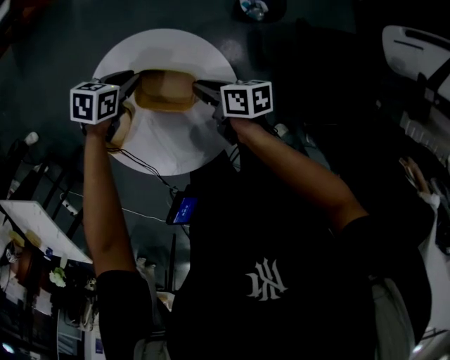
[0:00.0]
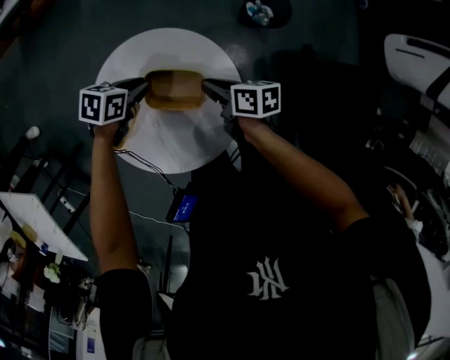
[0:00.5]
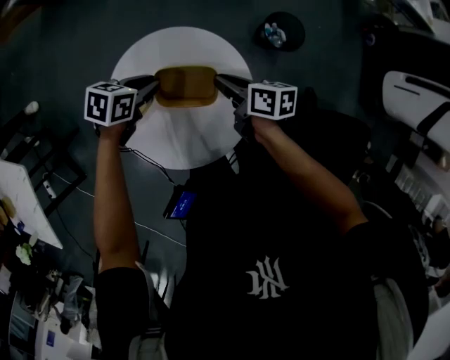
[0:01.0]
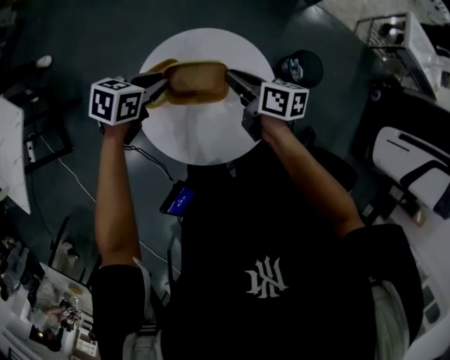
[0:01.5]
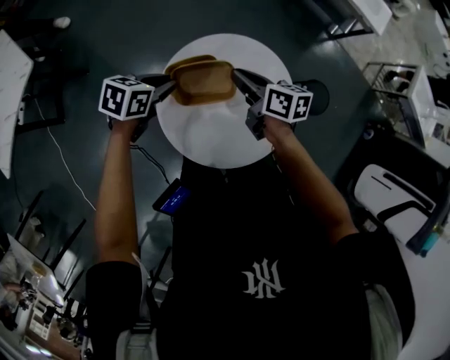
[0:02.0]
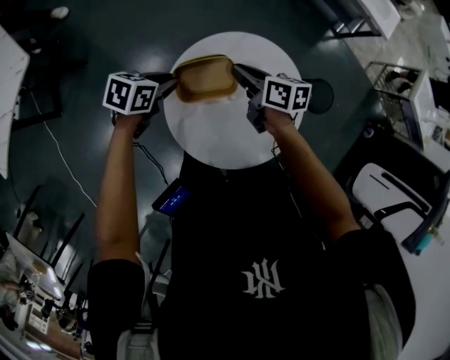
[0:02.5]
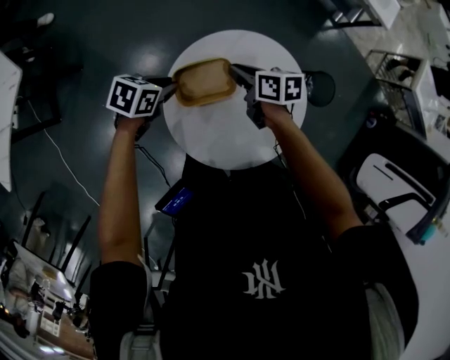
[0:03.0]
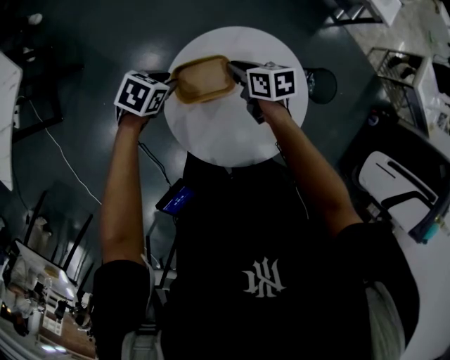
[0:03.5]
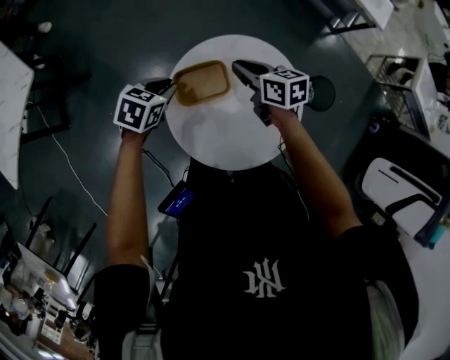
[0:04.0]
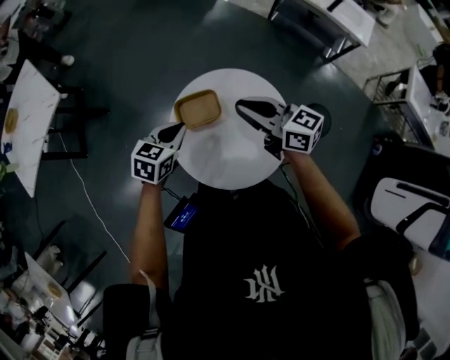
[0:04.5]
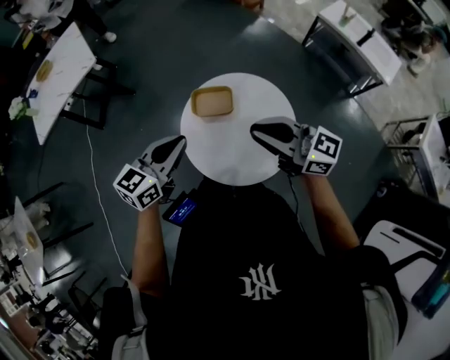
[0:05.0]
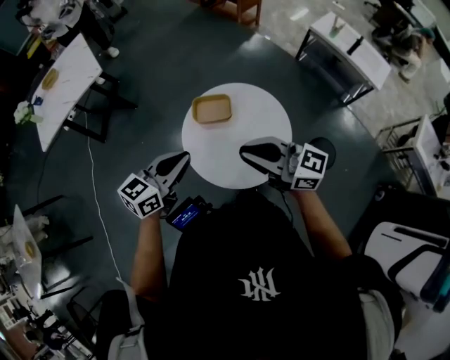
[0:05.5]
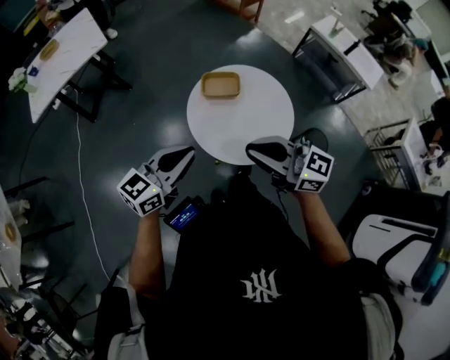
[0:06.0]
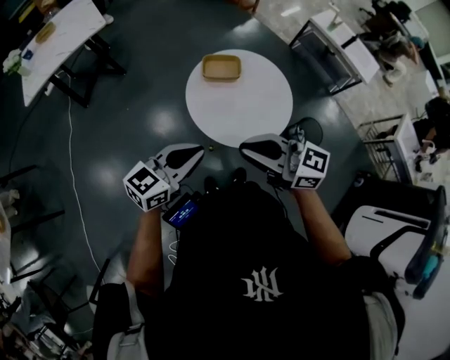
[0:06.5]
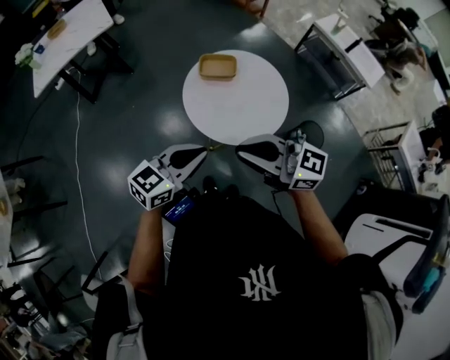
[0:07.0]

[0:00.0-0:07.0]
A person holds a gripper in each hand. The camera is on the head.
0.0 to 2.0 s: The left gripper ends up roughly 20 cm from where it was, and rotates approximately 40 degrees. Meanwhile the right gripper ends up about 20 cm from where it was, and rotates roughly 40 degrees.
2.0 to 3.5 s: Both grippers move downward, approximately 10 cm. The right gripper changes its angle by some 20 degrees.
3.5 to 5.0 s: The two grippers go roughly 30 cm upward. The left gripper tips its fingers upward by about 40 degrees, and closes up. Meanwhile the right gripper tips its fingers upward by roughly 50 degrees.
5.0 to 7.0 s: The right gripper shifts by approximately 25 cm, while the left gripper changes place by about 25 cm.

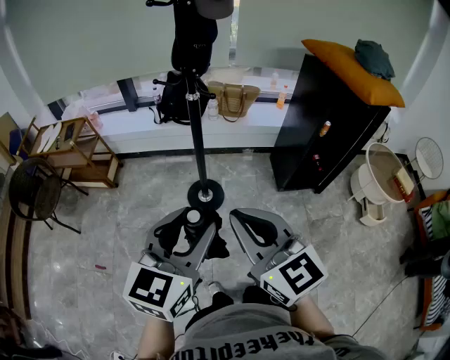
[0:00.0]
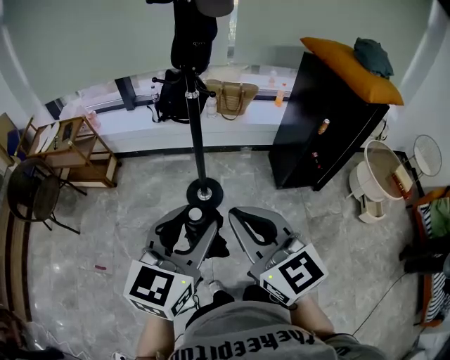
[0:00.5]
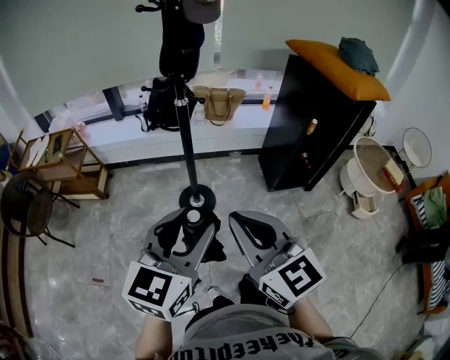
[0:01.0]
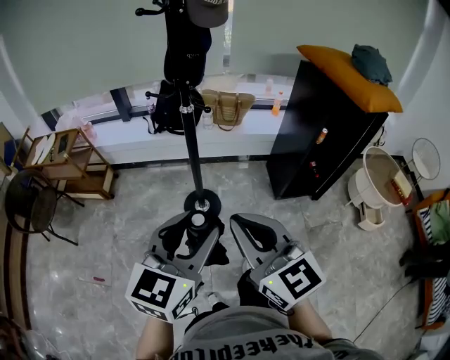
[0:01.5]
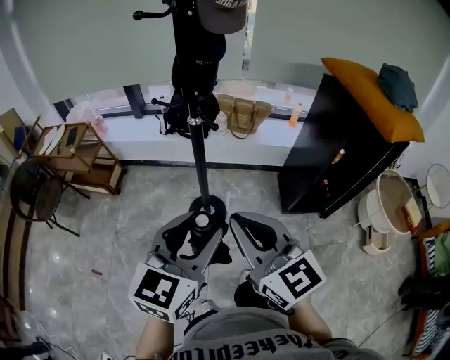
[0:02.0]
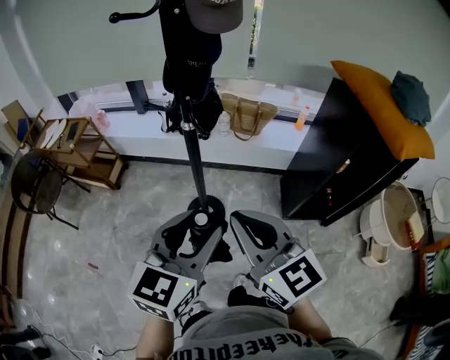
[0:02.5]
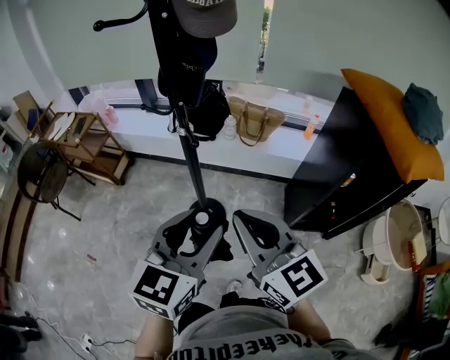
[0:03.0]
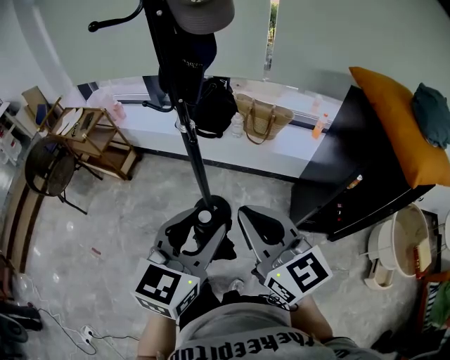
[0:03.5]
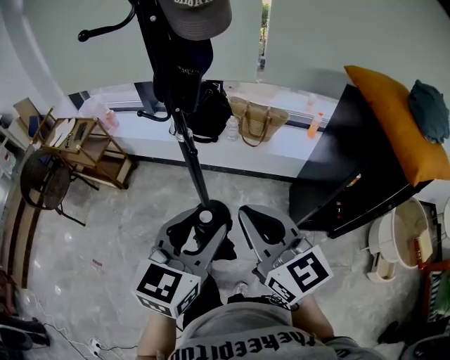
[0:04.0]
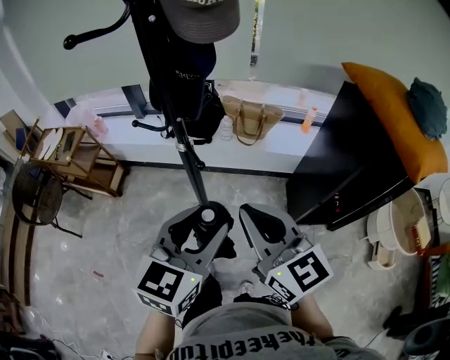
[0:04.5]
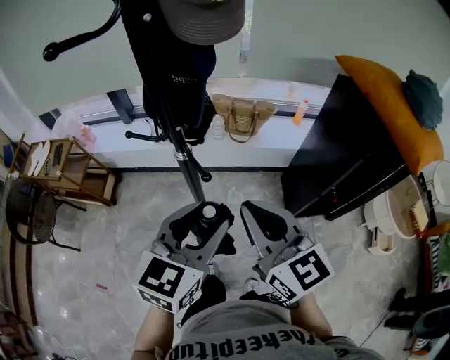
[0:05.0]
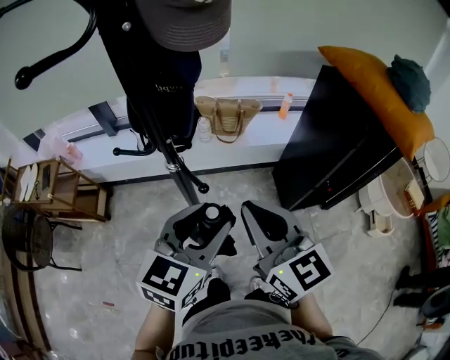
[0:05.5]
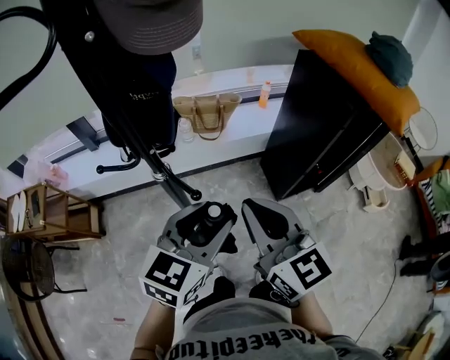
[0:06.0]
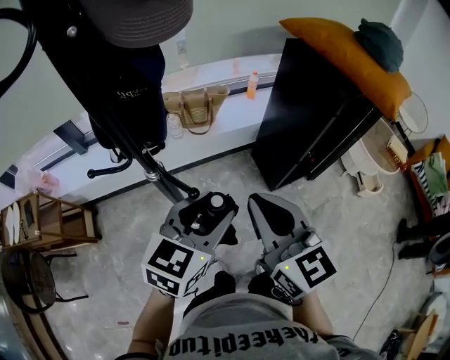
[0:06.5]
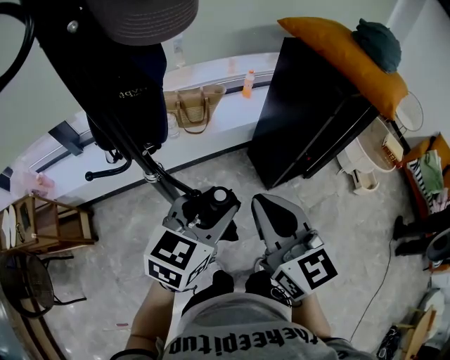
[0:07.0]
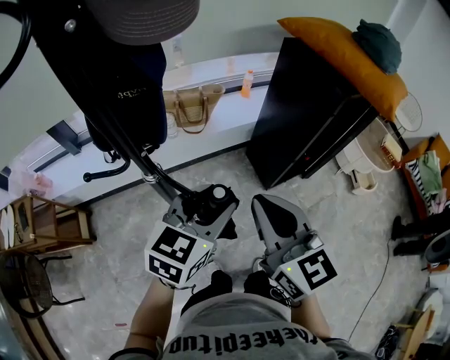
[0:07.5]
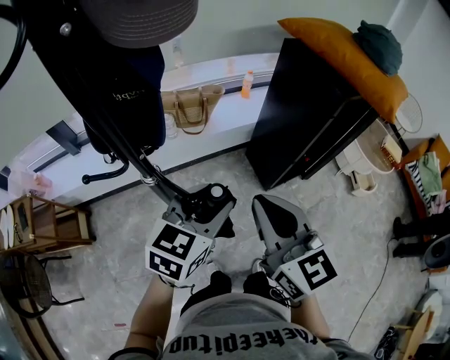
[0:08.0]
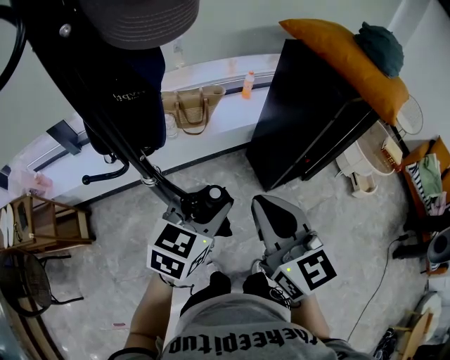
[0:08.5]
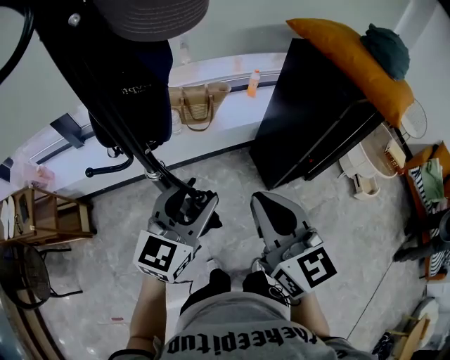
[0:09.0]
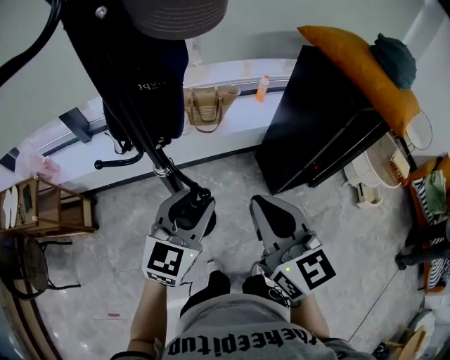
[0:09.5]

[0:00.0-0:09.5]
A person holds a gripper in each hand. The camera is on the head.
0.0 to 2.0 s: Both grippers move forward, some 10 cm.
2.0 to 4.0 s: The two grippers go roughly 15 cm forward and to the right.
4.0 to 5.5 s: The left gripper is displaced forward by roughly 10 cm, and rotates roughly 20 degrees. Meanwhile the right gripper moves forward and to the left, approximately 10 cm.
5.5 to 7.5 s: The left gripper heads forward, covering approximately 5 cm.
7.5 to 9.5 s: The left gripper shifts roughly 5 cm to the left.

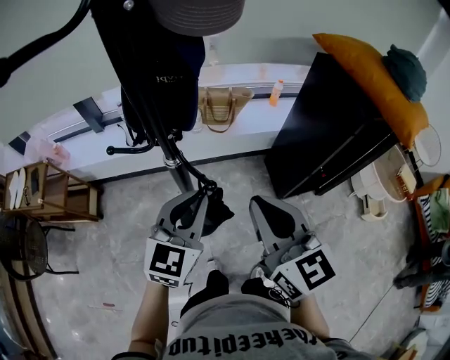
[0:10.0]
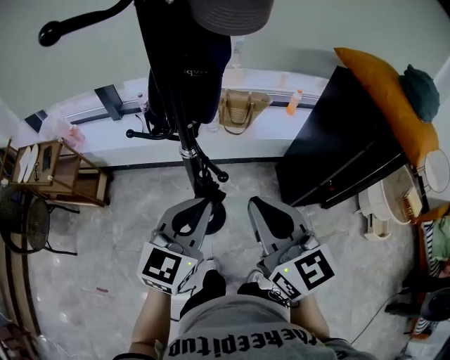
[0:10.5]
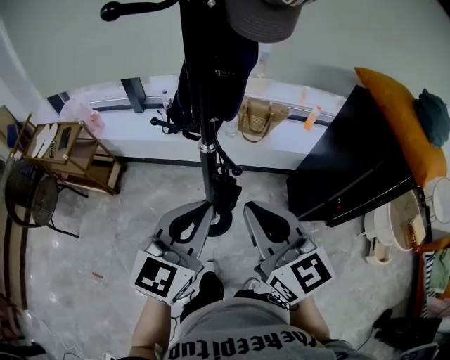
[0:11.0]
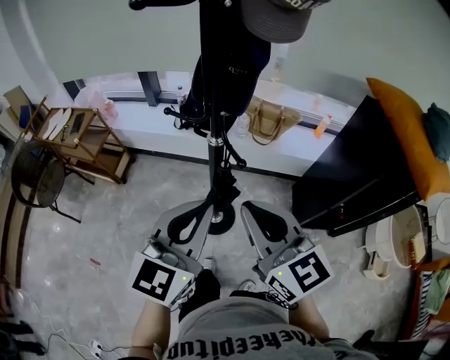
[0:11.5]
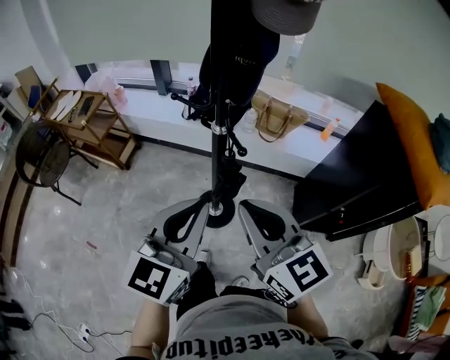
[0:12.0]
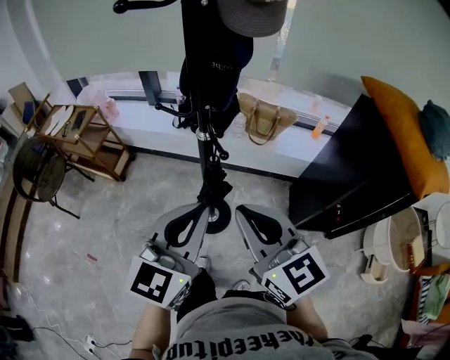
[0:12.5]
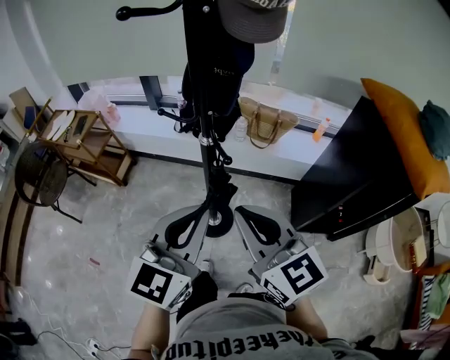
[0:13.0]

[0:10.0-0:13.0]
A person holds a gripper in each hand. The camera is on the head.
10.0 to 11.5 s: The right gripper heads to the left and backward, covering about 10 cm, and changes its angle by some 30 degrees; the left gripper is displaced backward and upward by about 15 cm.
11.5 to 13.0 s: There are only small adjustments of the grippers.

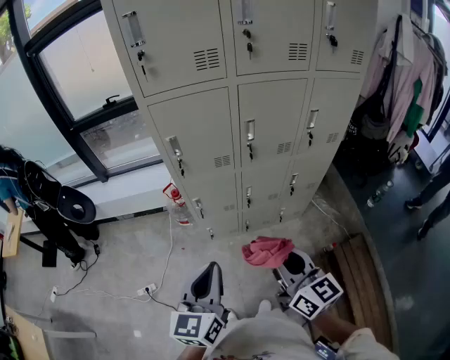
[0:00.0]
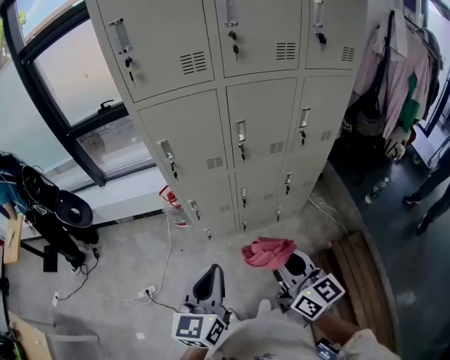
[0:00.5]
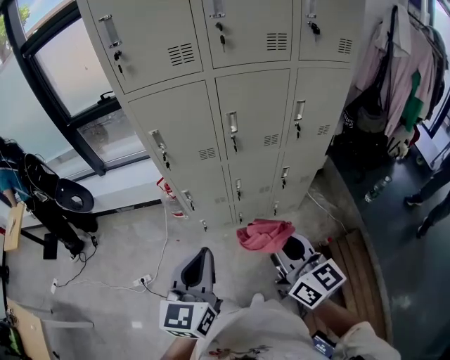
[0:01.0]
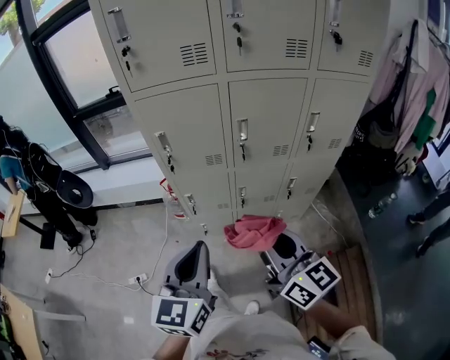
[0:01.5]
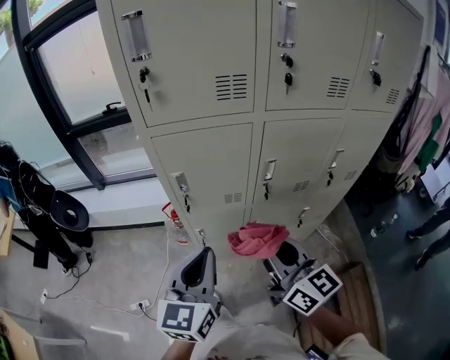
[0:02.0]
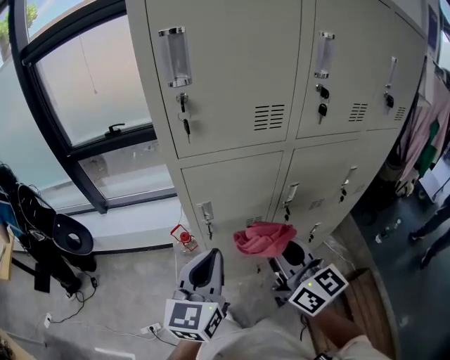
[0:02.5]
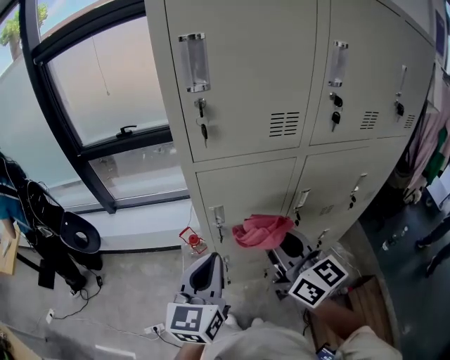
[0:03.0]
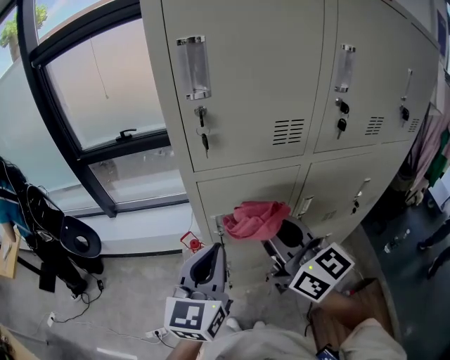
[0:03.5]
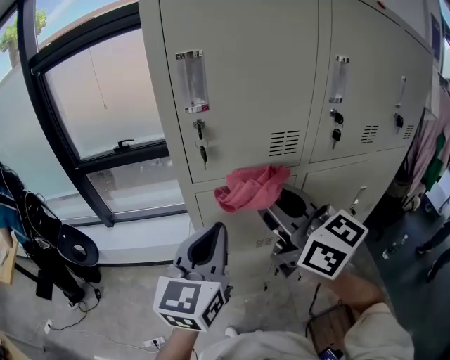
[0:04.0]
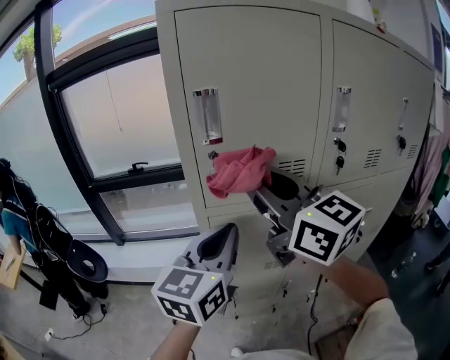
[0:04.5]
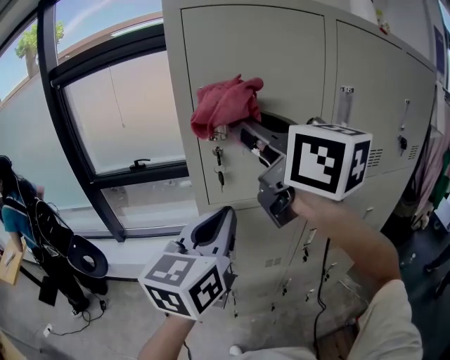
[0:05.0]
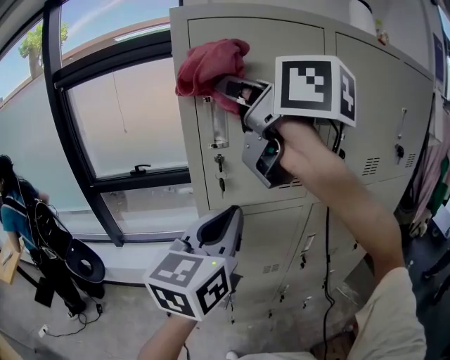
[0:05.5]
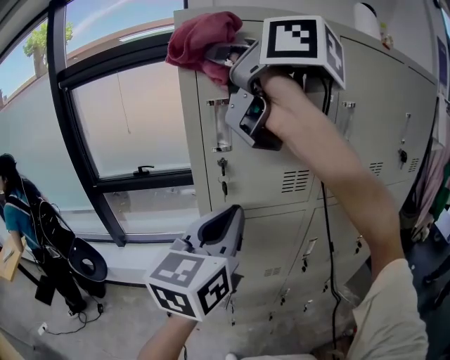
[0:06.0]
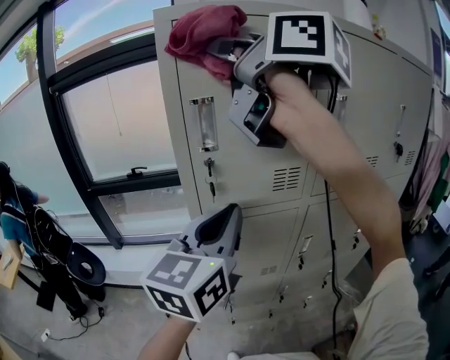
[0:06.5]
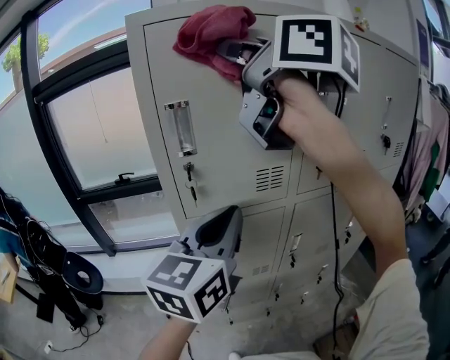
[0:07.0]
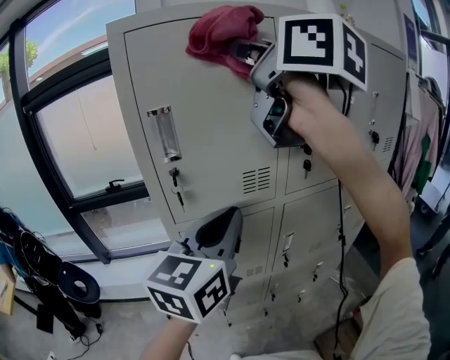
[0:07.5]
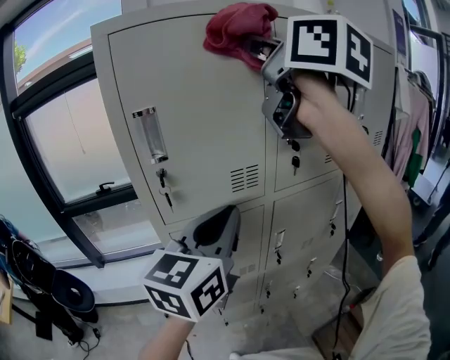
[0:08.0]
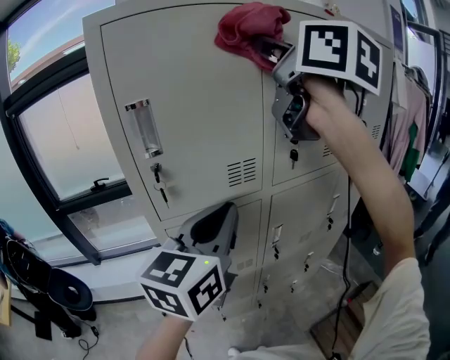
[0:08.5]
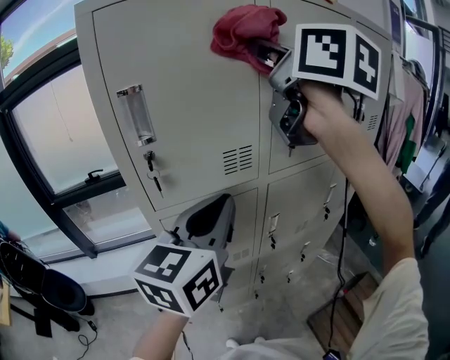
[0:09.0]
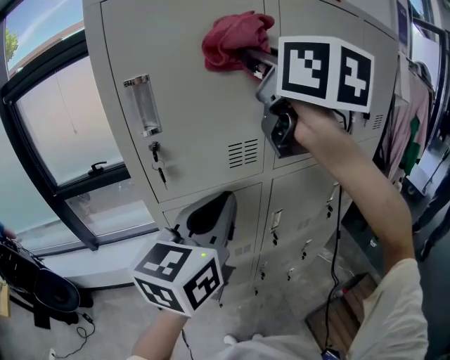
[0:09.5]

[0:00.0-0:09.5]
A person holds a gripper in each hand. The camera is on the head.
0.0 to 2.0 s: Both grippers move forward, roughly 20 cm.
2.0 to 4.0 s: The right gripper goes about 25 cm upward, forward and to the left; the left gripper moves forward, upward and to the left, approximately 20 cm.
4.0 to 5.5 s: The right gripper is displaced upward by approximately 25 cm; the left gripper moves upward, about 10 cm.
5.5 to 7.5 s: The right gripper goes about 15 cm to the right and upward, while the left gripper heads to the right, covering roughly 10 cm.
7.5 to 9.5 s: The right gripper moves downward, some 5 cm.
